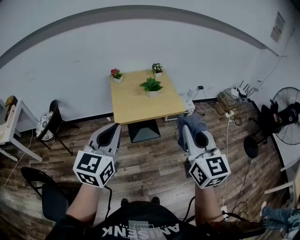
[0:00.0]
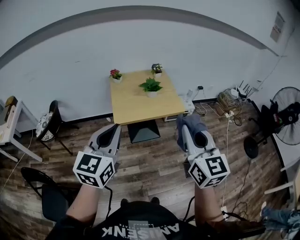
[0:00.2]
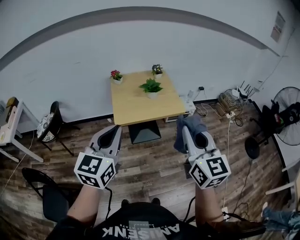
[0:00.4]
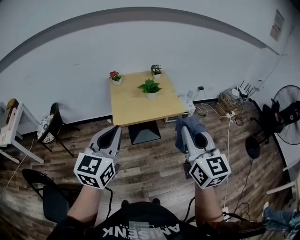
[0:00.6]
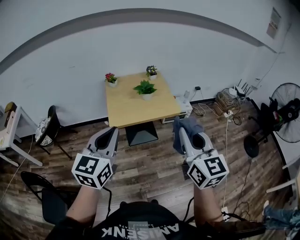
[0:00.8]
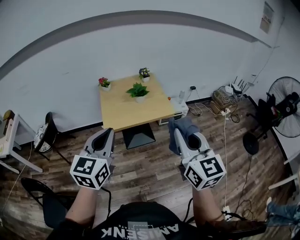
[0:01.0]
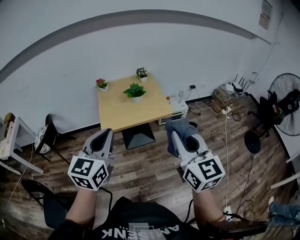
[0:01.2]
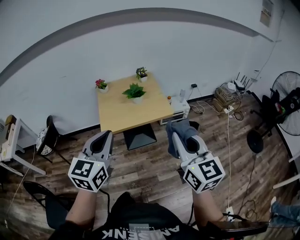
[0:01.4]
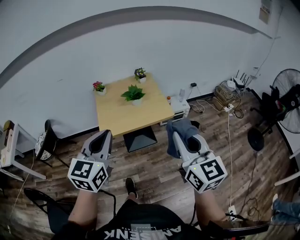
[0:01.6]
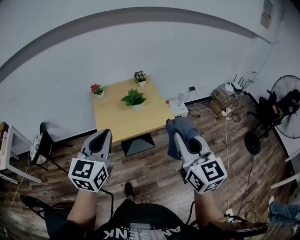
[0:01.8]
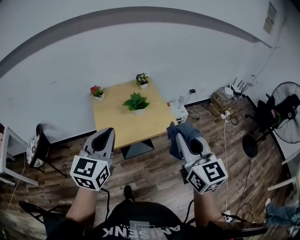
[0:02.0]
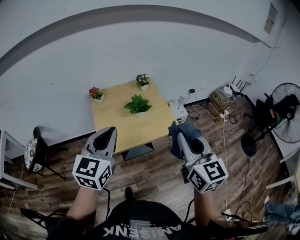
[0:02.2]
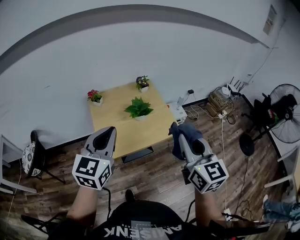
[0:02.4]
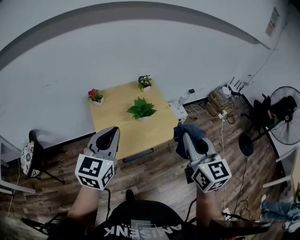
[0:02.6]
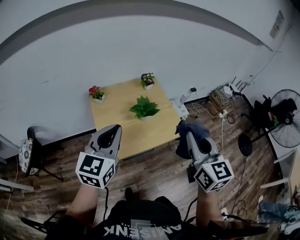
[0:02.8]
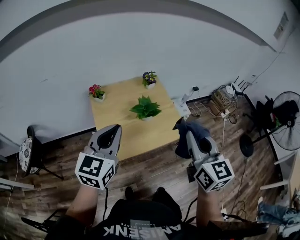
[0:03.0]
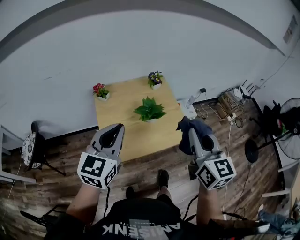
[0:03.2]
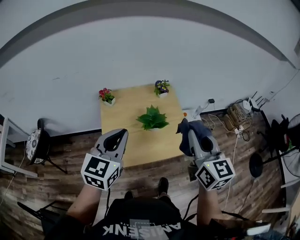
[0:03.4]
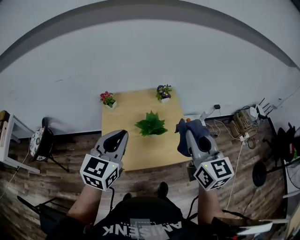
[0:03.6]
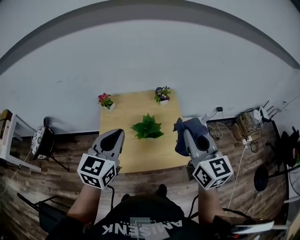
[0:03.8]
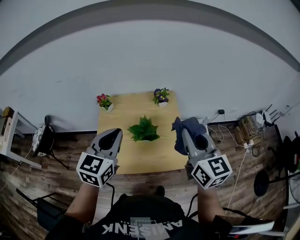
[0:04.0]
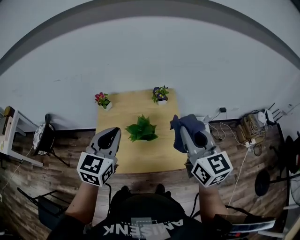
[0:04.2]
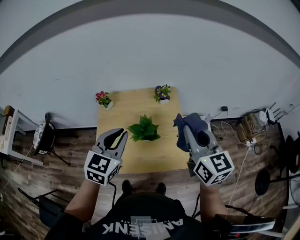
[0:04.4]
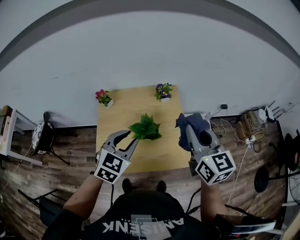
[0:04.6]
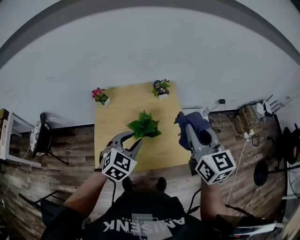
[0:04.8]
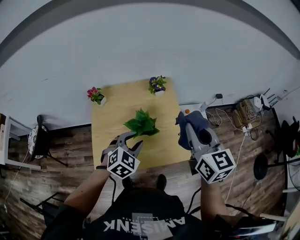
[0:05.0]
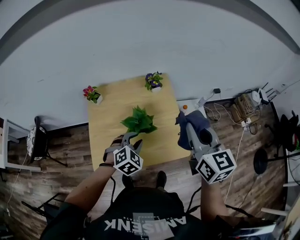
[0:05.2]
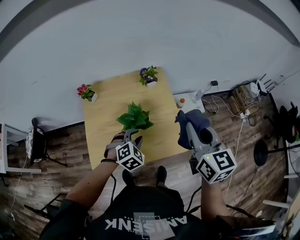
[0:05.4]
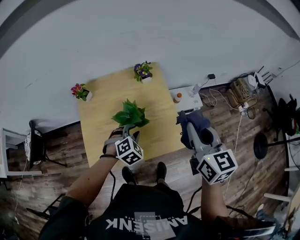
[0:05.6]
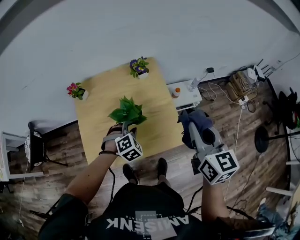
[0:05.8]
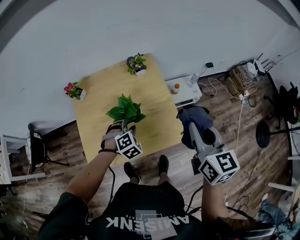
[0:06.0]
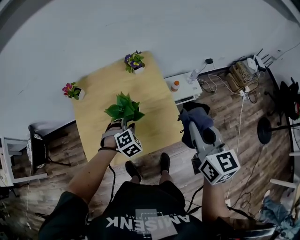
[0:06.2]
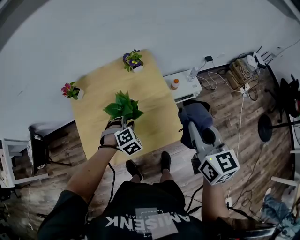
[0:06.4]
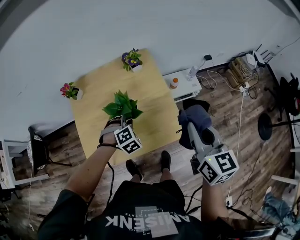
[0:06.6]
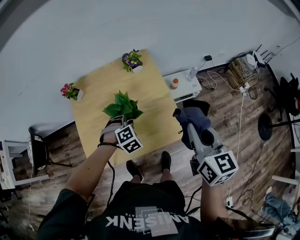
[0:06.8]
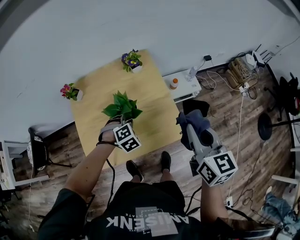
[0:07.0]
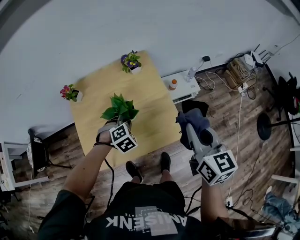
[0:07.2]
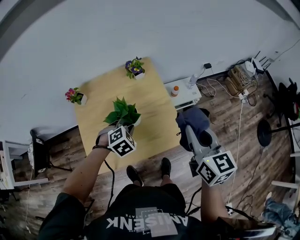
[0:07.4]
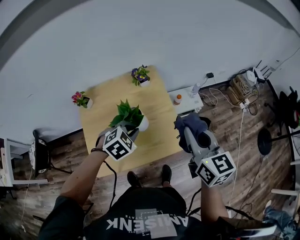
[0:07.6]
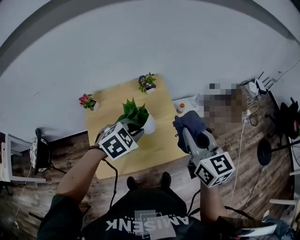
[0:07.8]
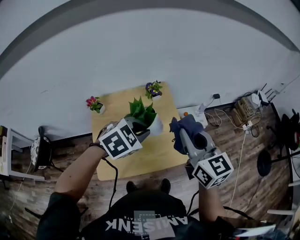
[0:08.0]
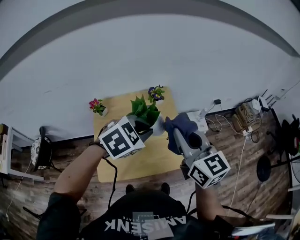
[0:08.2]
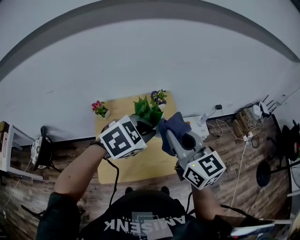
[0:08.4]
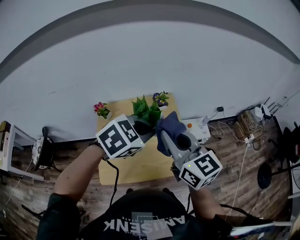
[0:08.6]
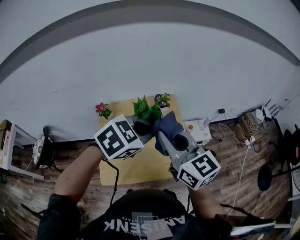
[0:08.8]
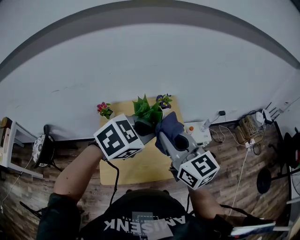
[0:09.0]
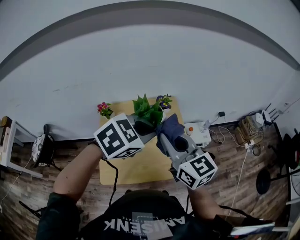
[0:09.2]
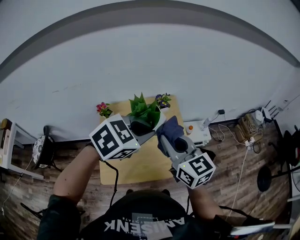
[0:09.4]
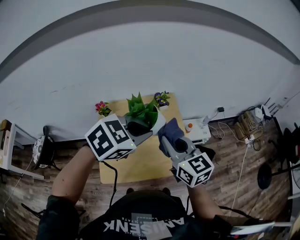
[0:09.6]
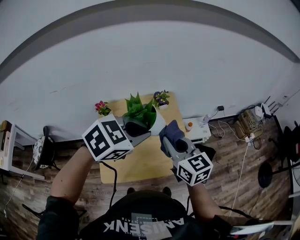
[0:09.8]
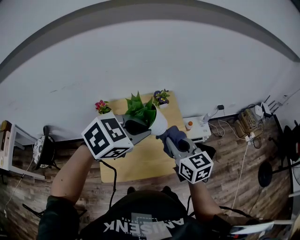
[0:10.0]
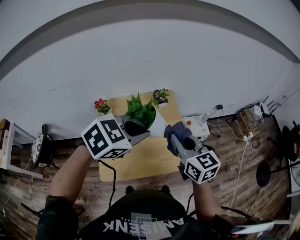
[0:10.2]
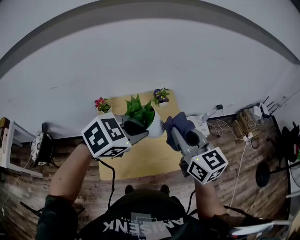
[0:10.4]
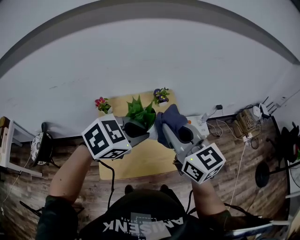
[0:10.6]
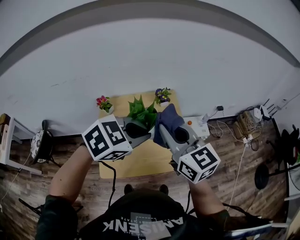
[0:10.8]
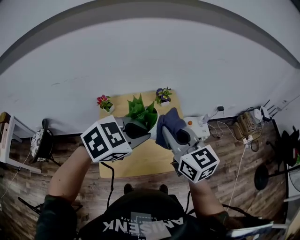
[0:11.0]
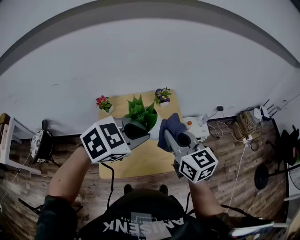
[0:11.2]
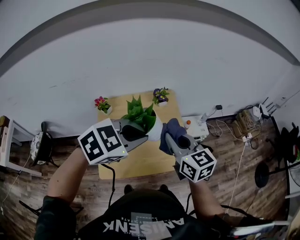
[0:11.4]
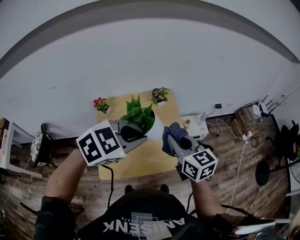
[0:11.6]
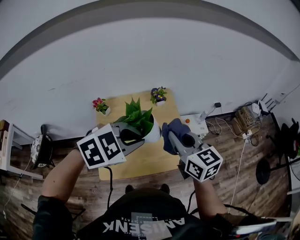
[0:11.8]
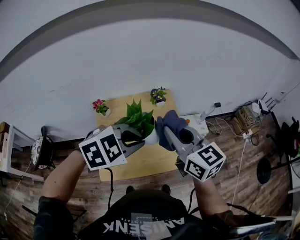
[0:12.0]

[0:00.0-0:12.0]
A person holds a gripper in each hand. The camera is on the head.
0:00.0 to 0:01.6: The two grippers go approximately 10 cm to the right and forward.
0:01.6 to 0:03.0: Both grippers move forward and to the left, some 30 cm.
0:03.0 to 0:04.4: The grippers both shift forward and to the right by some 20 cm. The right gripper rotates approximately 20 degrees.
0:04.4 to 0:06.0: The right gripper is displaced downward and to the right by roughly 10 cm, and changes its angle by about 20 degrees; the left gripper travels downward by about 25 cm, tips its fingers downward by approximately 40 degrees, and opens its fingers.
0:06.0 to 0:07.6: The left gripper goes roughly 10 cm upward, turns by approximately 20 degrees, and closes its fingers.
0:07.6 to 0:09.0: The left gripper is displaced upward by some 20 cm; the right gripper heads to the left and upward, covering about 20 cm, and changes its angle by approximately 30 degrees.
0:09.0 to 0:10.4: The right gripper travels downward and back again, some 10 cm each way.
0:10.4 to 0:12.0: The right gripper goes downward and returns, approximately 5 cm each way.

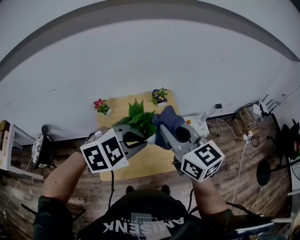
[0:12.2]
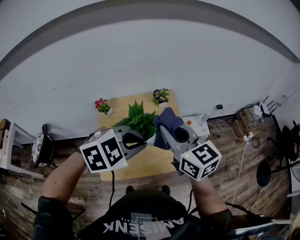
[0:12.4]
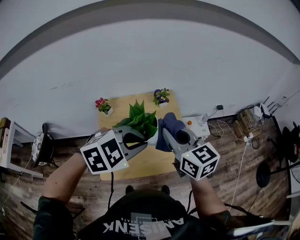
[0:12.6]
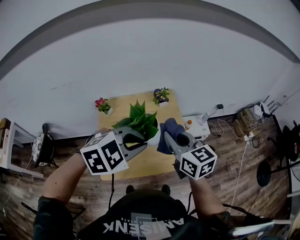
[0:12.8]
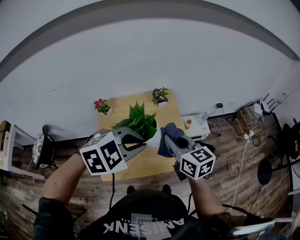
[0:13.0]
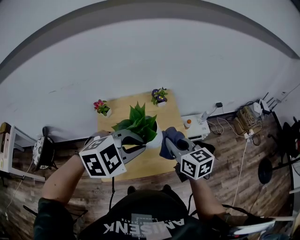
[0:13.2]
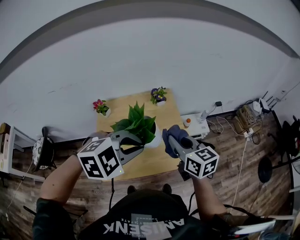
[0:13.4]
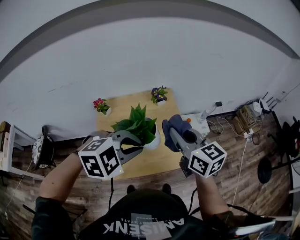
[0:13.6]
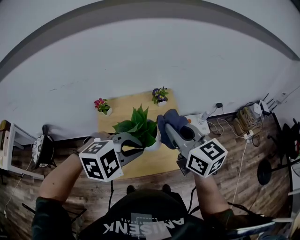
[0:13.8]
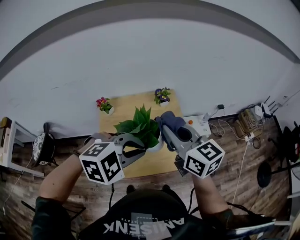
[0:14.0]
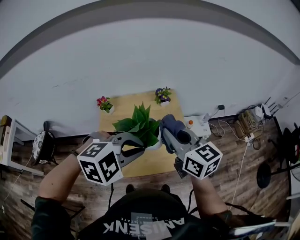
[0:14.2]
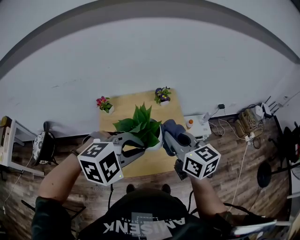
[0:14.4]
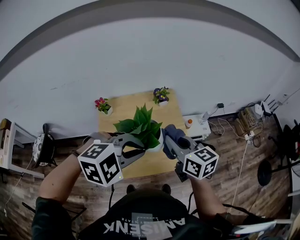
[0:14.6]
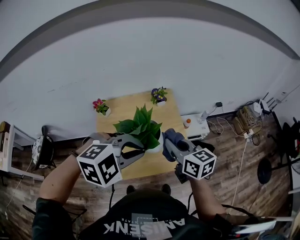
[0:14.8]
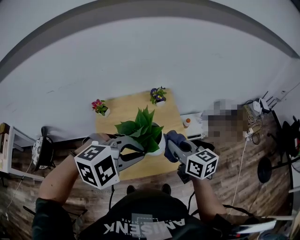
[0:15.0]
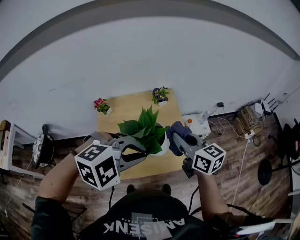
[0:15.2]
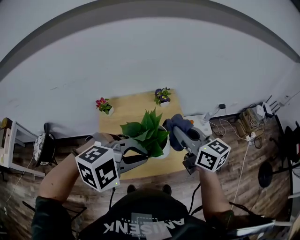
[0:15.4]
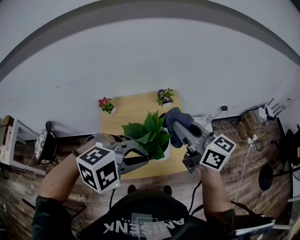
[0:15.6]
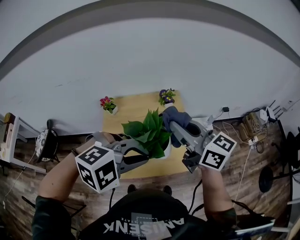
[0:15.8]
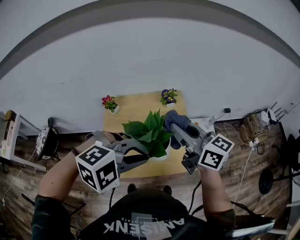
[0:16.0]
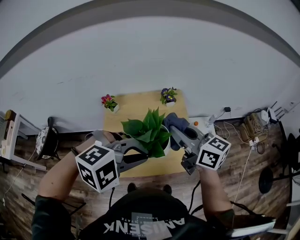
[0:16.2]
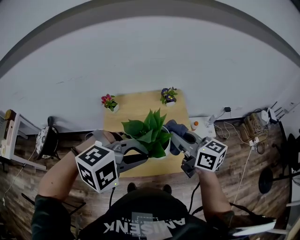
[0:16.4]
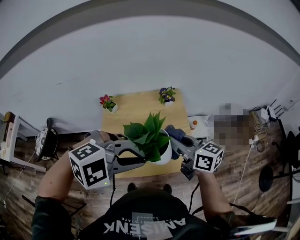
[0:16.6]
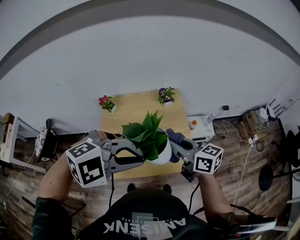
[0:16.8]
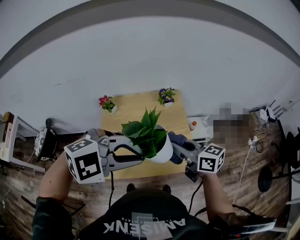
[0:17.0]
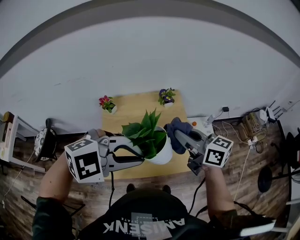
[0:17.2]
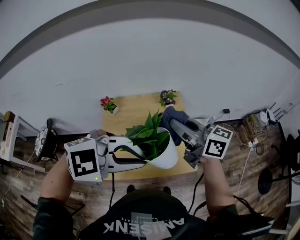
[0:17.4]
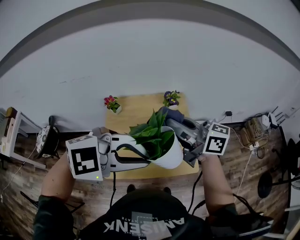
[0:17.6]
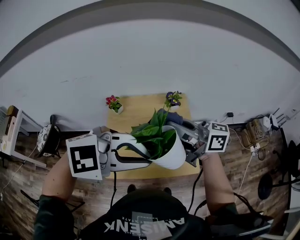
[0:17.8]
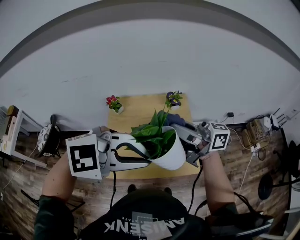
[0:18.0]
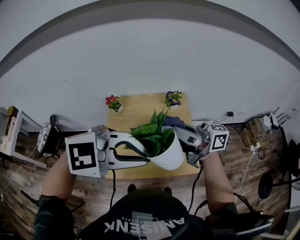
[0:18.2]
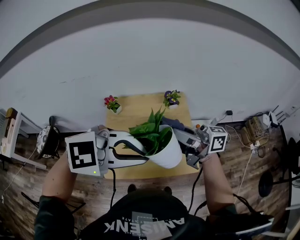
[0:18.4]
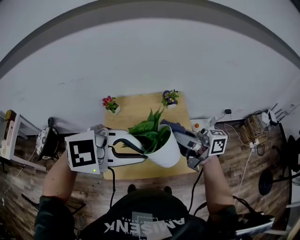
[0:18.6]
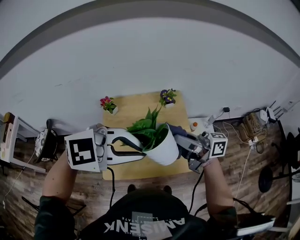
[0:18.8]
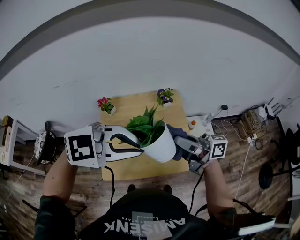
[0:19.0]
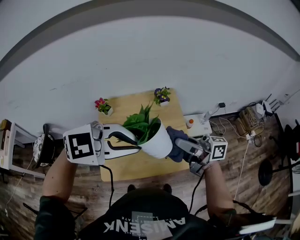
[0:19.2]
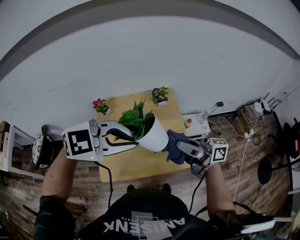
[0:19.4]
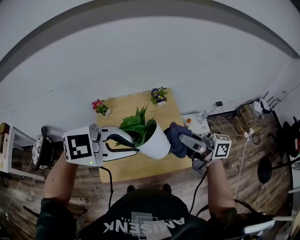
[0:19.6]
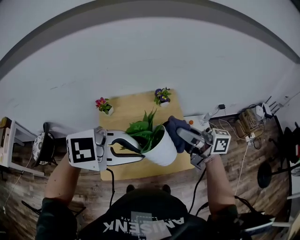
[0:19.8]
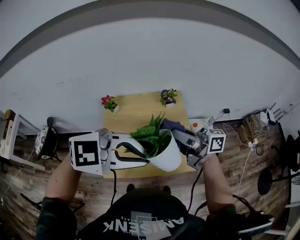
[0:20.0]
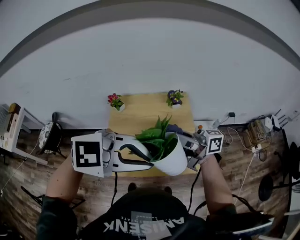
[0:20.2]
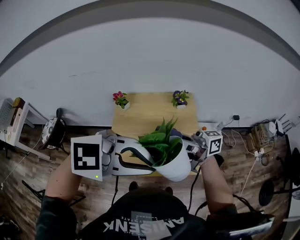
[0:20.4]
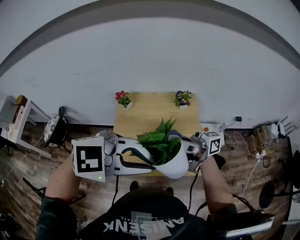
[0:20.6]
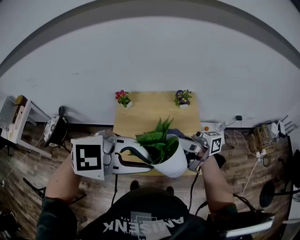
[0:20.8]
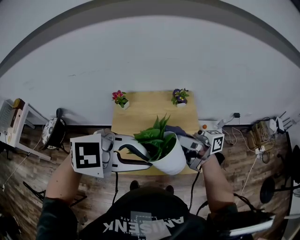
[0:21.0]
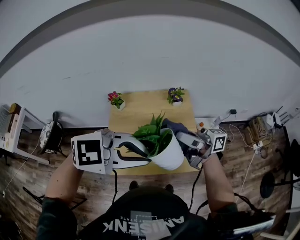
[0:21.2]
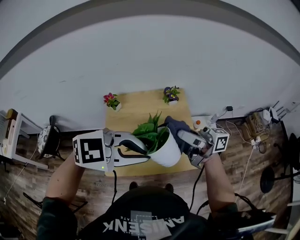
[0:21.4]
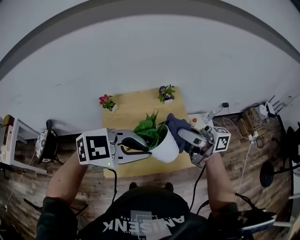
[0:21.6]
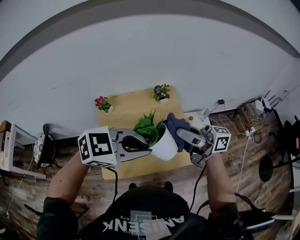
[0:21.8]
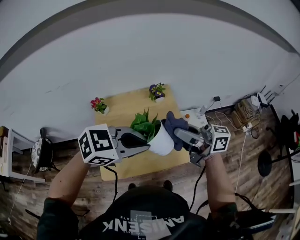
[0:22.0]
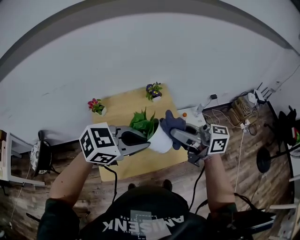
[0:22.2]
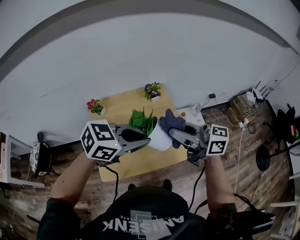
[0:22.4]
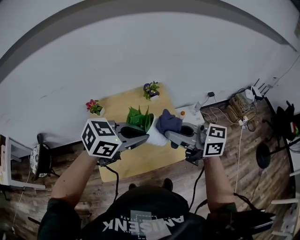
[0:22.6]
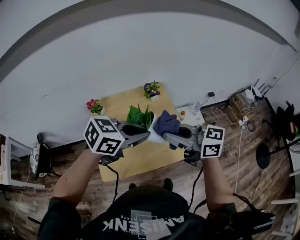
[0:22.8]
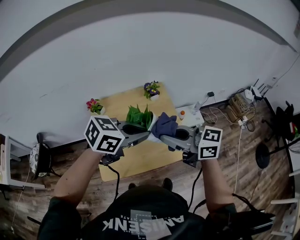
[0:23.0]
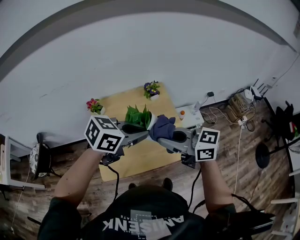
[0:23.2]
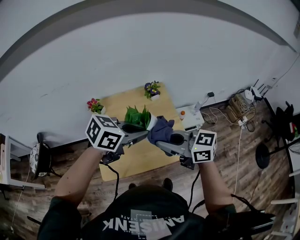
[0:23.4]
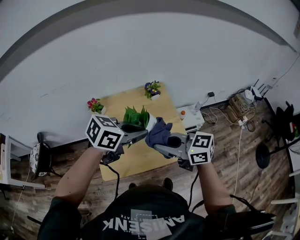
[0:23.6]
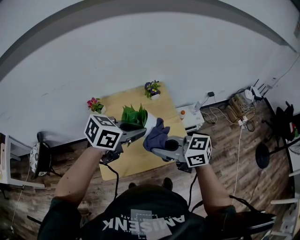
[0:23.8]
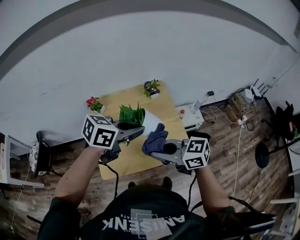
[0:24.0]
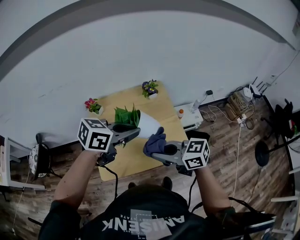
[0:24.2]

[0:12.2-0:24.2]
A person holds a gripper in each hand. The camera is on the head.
0:12.2 to 0:13.8: The right gripper goes downward and returns, some 10 cm each way.
0:13.8 to 0:15.2: The right gripper shifts about 10 cm downward.
0:15.2 to 0:16.6: The right gripper travels upward and back again, about 10 cm each way.
0:16.6 to 0:18.2: The left gripper shifts approximately 5 cm upward; the right gripper travels upward by roughly 10 cm, and turns by roughly 40 degrees.
0:19.8 to 0:21.2: The right gripper rotates some 20 degrees.
0:21.2 to 0:22.6: The right gripper turns by some 40 degrees; the left gripper shifts by approximately 10 cm, and changes its angle by about 30 degrees.
0:22.6 to 0:24.2: The right gripper is displaced downward by roughly 10 cm.
